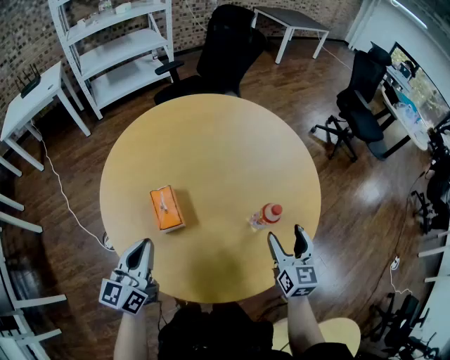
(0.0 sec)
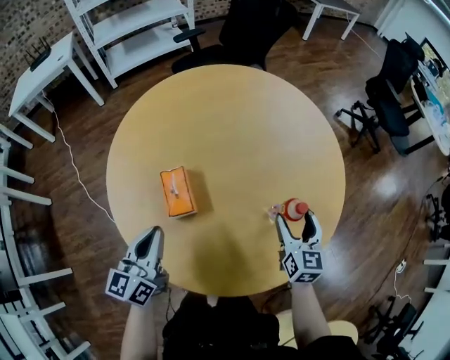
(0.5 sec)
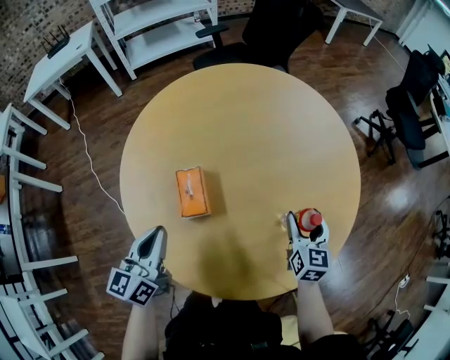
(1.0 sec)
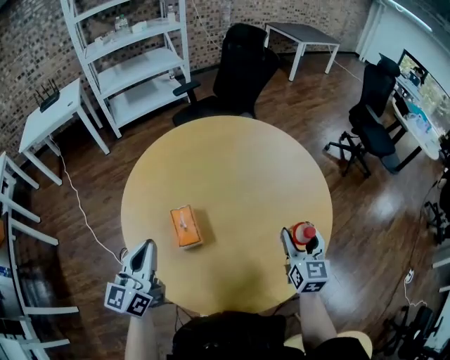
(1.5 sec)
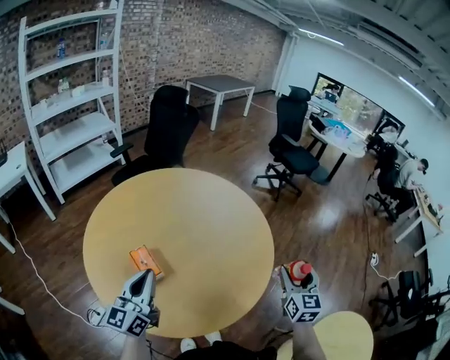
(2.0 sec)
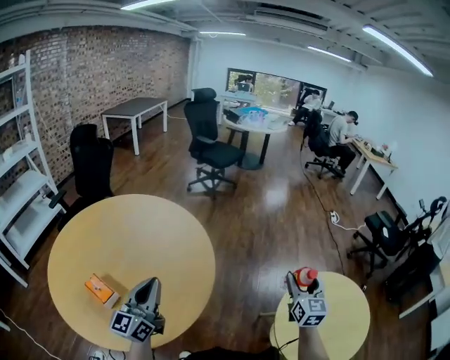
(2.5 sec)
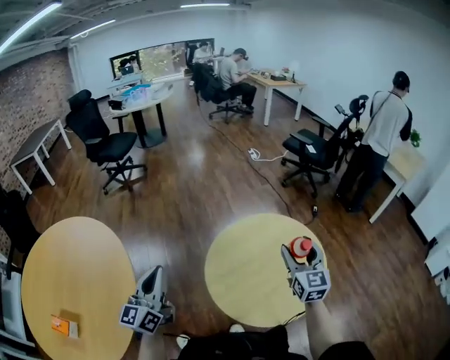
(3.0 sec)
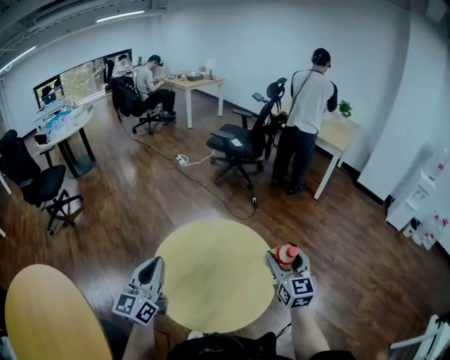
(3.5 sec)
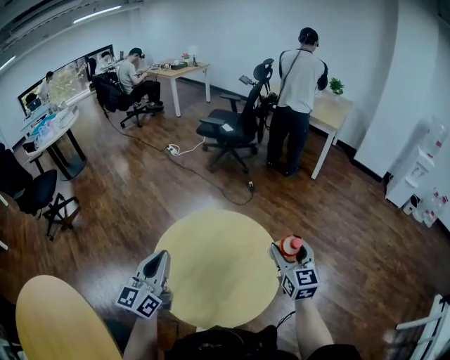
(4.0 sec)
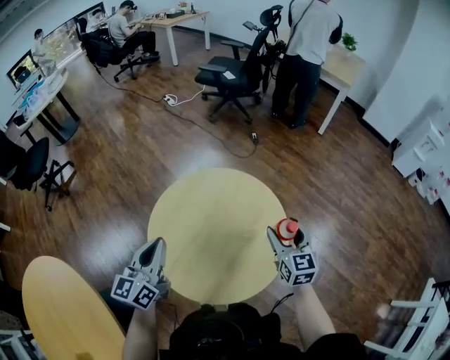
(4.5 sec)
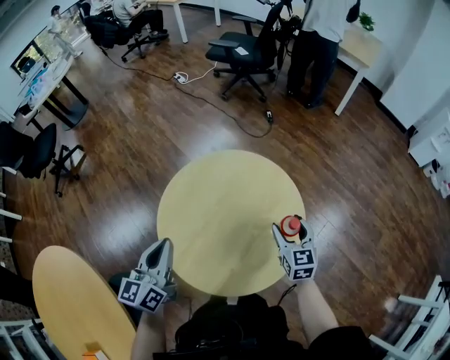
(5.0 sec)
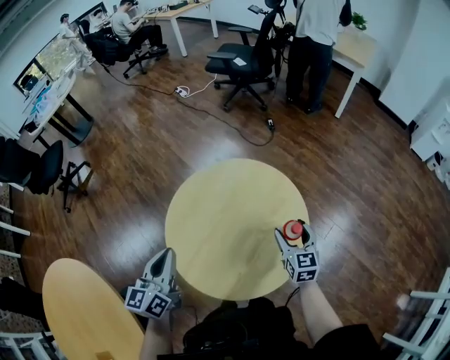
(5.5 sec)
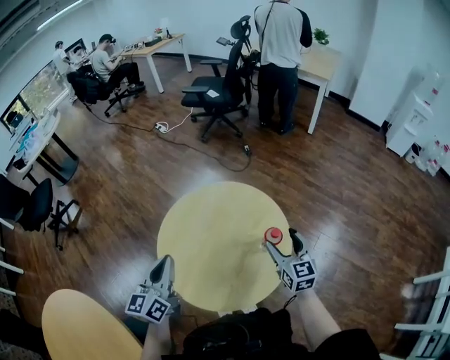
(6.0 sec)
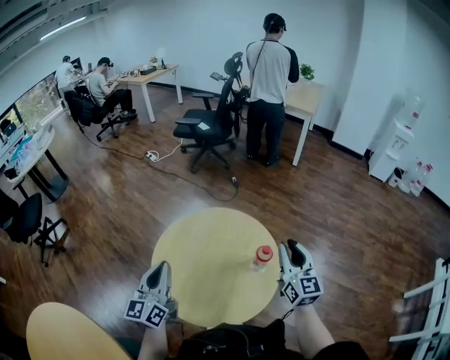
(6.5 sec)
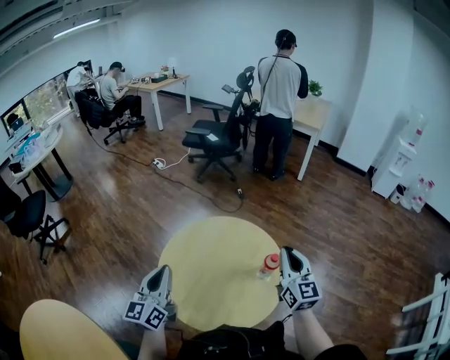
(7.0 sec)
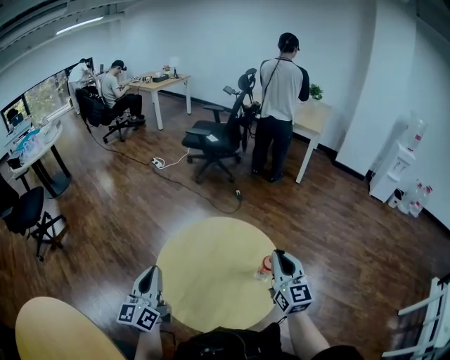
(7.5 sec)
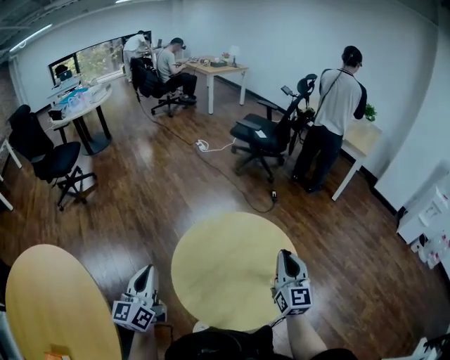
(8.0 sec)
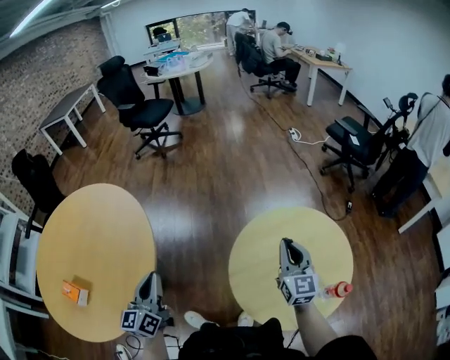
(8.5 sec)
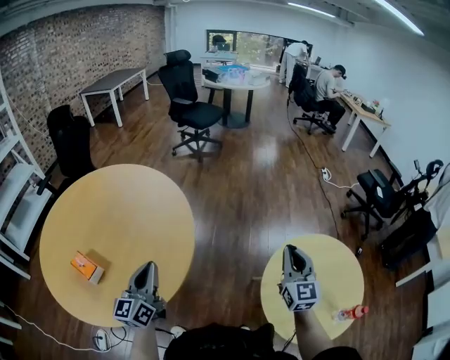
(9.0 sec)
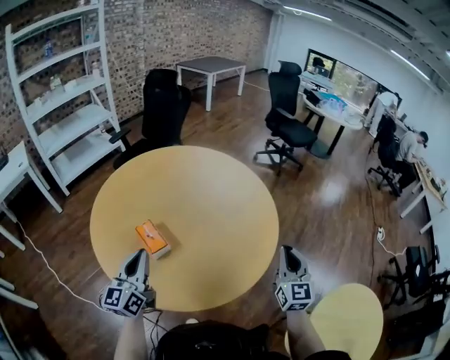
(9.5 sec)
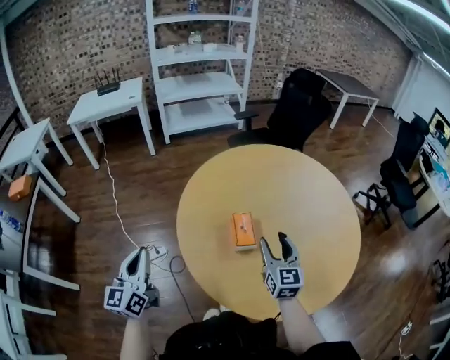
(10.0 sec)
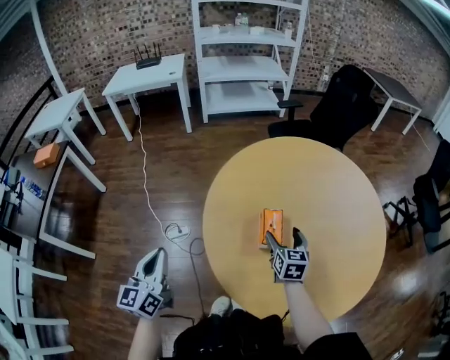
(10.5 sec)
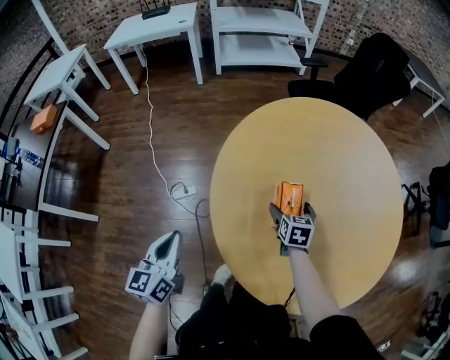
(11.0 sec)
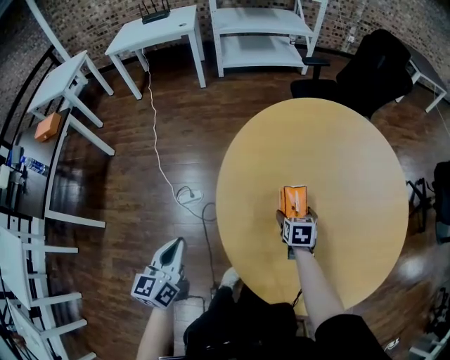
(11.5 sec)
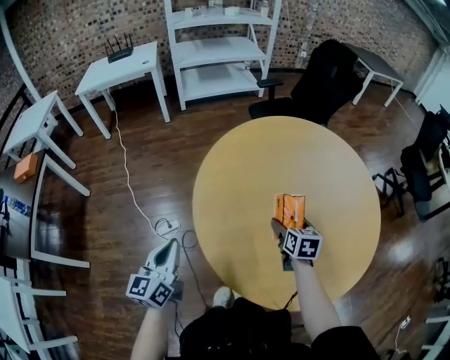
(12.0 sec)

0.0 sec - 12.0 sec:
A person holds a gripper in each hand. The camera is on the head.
0.0 sec - 2.0 sec: The right gripper moves about 15 cm, and swivels some 30 degrees, while the left gripper is displaced upward by some 5 cm, and swivels approximately 20 degrees.
2.0 sec - 4.0 sec: The left gripper moves about 80 cm, and turns by some 90 degrees. The right gripper changes place by about 80 cm, and swivels roughly 70 degrees.
4.0 sec - 6.0 sec: The right gripper travels downward by some 10 cm; the left gripper shifts some 5 cm downward.
6.0 sec - 8.0 sec: The right gripper travels upward and to the left by approximately 15 cm, and closes. Meanwhile the left gripper goes some 15 cm to the left and backward, and turns by approximately 20 degrees.
8.0 sec - 10.0 sec: The left gripper moves roughly 90 cm, and swivels roughly 110 degrees, while the right gripper ends up roughly 1 m from where it was, swivels roughly 110 degrees, and opens its fingers.
10.0 sec - 12.0 sec: The left gripper moves downward, about 5 cm. Meanwhile the right gripper heads downward and forward, covering about 15 cm, tilts its fingers some 30 degrees downward, and opens its fingers.

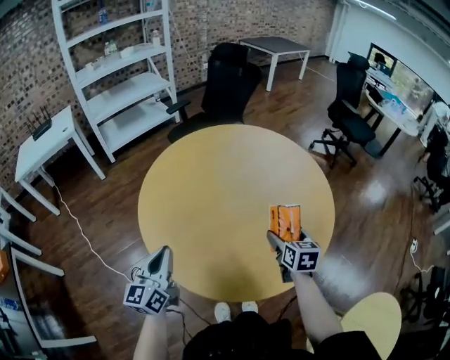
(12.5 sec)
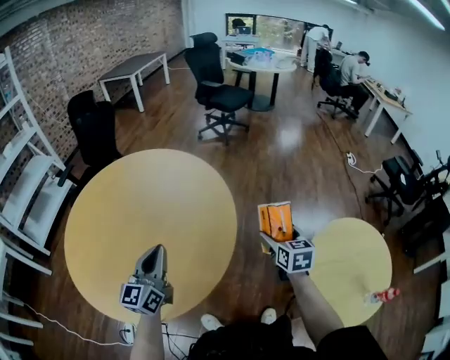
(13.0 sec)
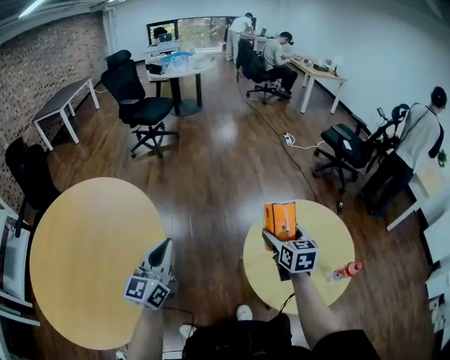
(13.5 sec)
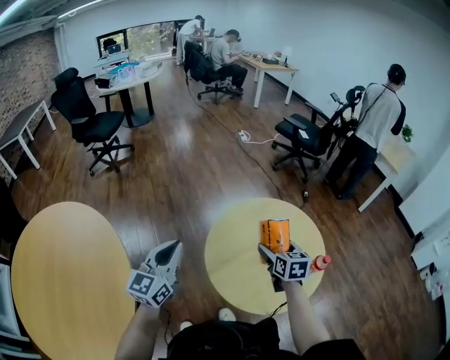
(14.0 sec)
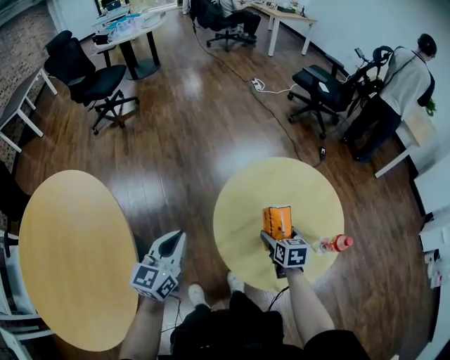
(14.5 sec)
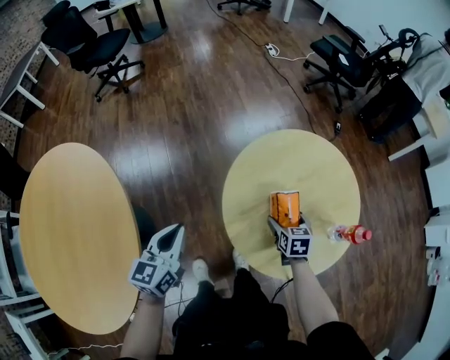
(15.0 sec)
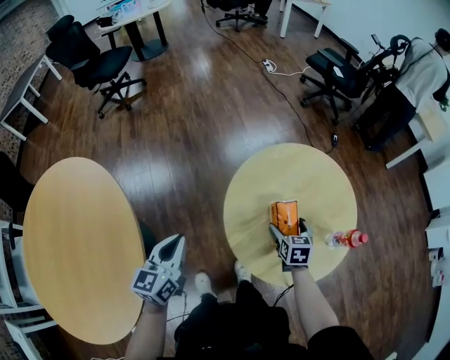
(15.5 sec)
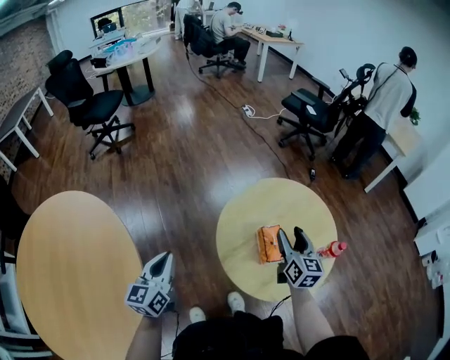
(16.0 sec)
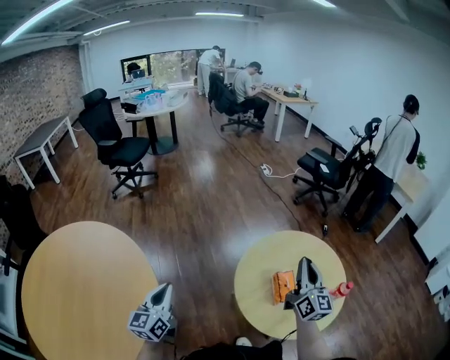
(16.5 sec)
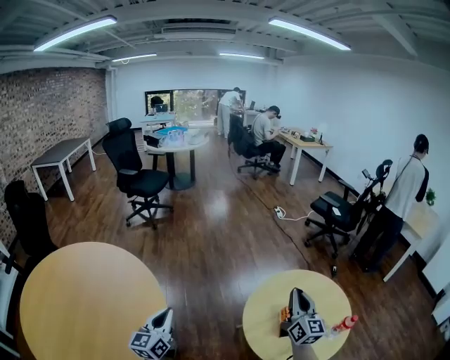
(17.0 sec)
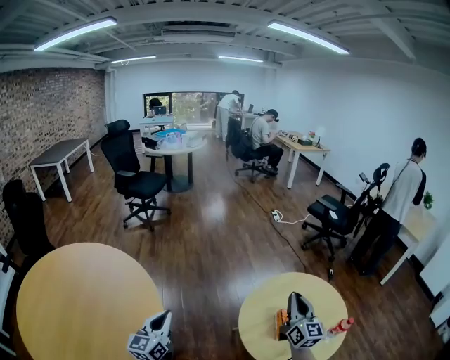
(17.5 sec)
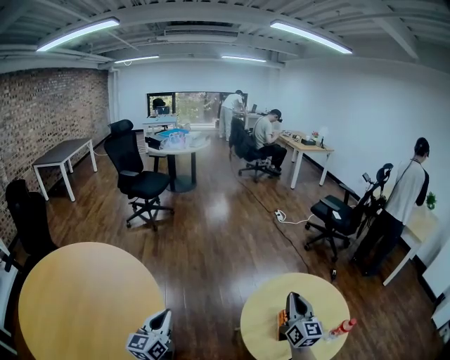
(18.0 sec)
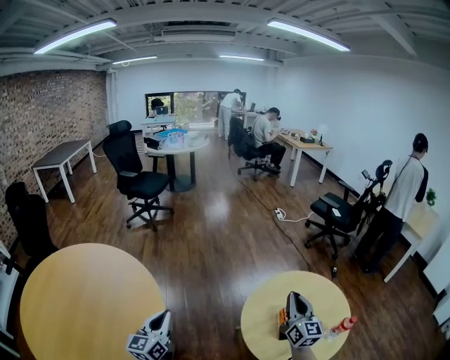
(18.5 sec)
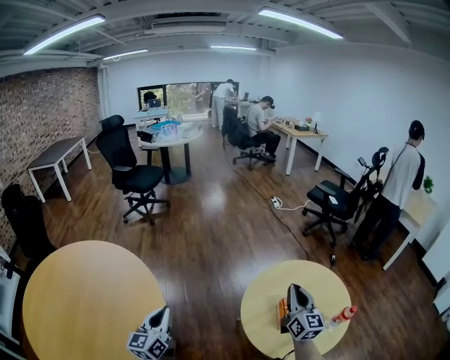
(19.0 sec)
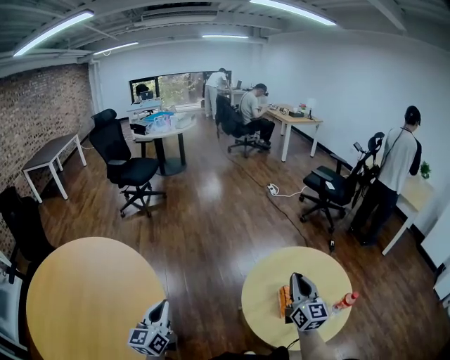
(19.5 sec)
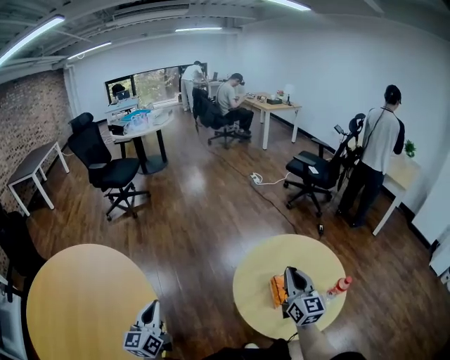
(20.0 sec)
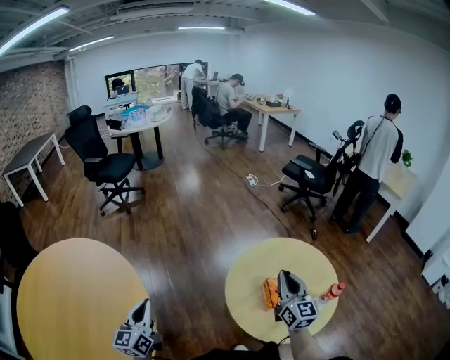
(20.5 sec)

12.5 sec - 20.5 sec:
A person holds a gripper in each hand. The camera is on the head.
12.5 sec - 14.5 sec: The pair of grippers is taken approximately 70 cm. The right gripper swivels roughly 70 degrees. Meanwhile the left gripper changes its angle by approximately 80 degrees.
14.5 sec - 16.5 sec: The right gripper travels upward by about 25 cm, tips its fingers upward by about 60 degrees, and closes its fingers. The left gripper goes roughly 15 cm to the left.
16.5 sec - 18.5 sec: The left gripper shifts by roughly 5 cm; the right gripper heads to the left, covering some 5 cm.
18.5 sec - 20.5 sec: The grippers stay close to where they were, moving slightly.

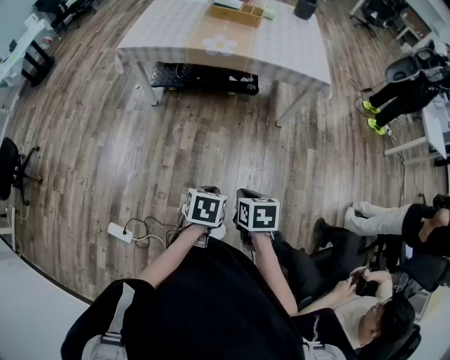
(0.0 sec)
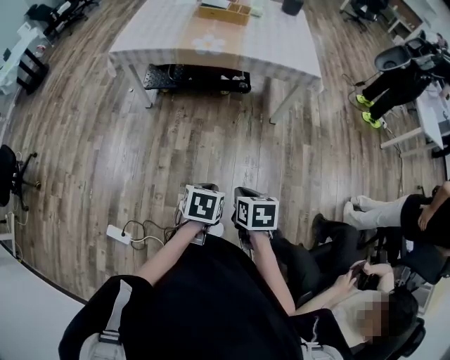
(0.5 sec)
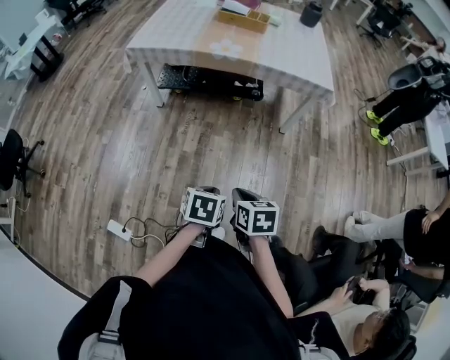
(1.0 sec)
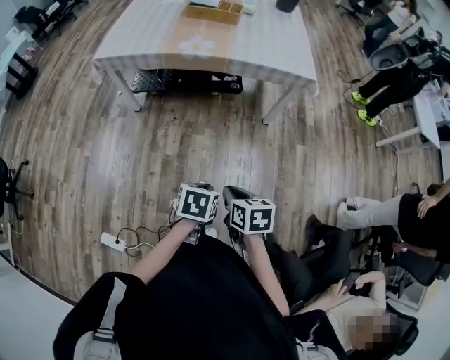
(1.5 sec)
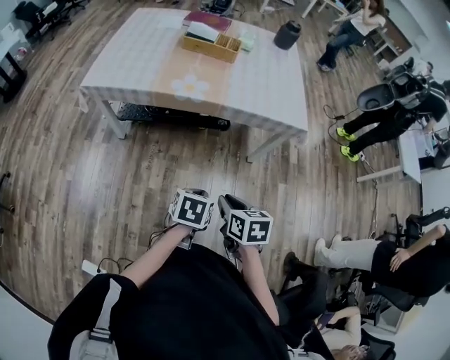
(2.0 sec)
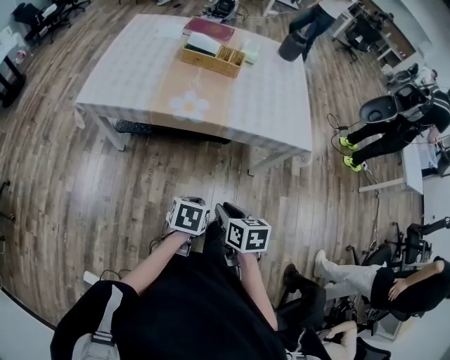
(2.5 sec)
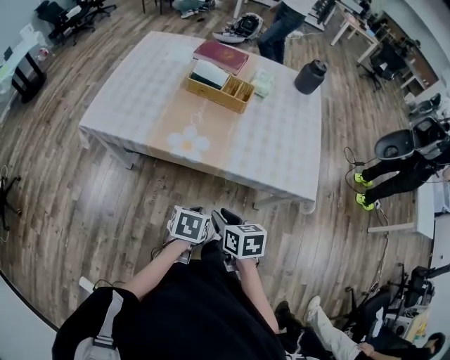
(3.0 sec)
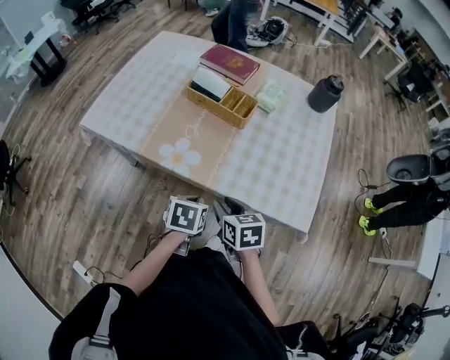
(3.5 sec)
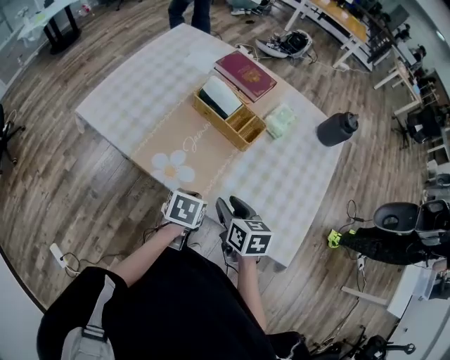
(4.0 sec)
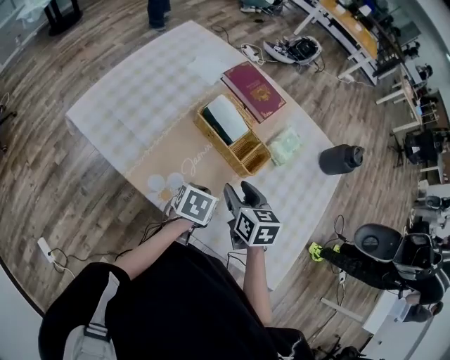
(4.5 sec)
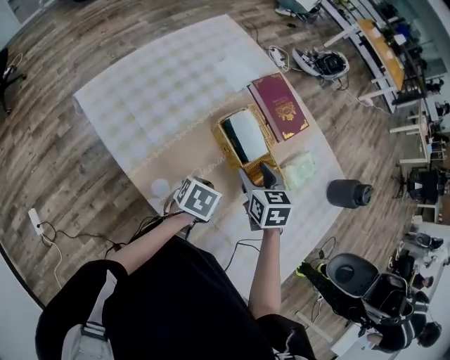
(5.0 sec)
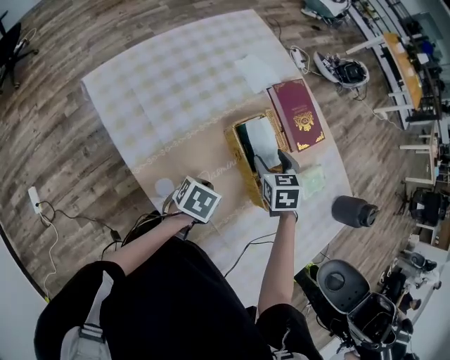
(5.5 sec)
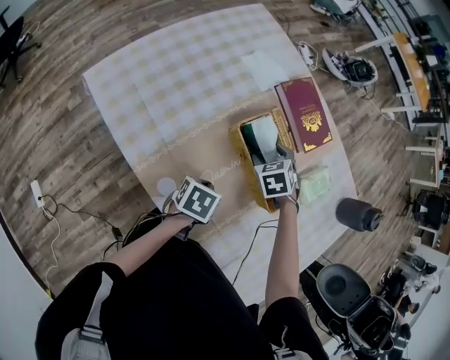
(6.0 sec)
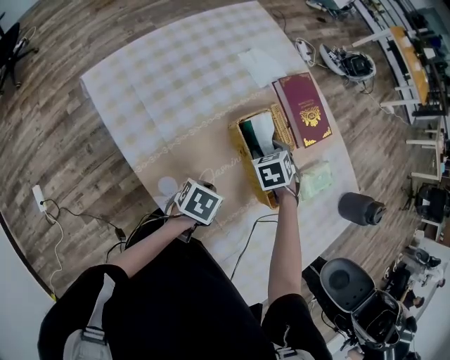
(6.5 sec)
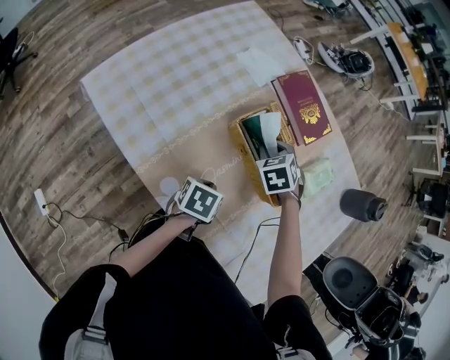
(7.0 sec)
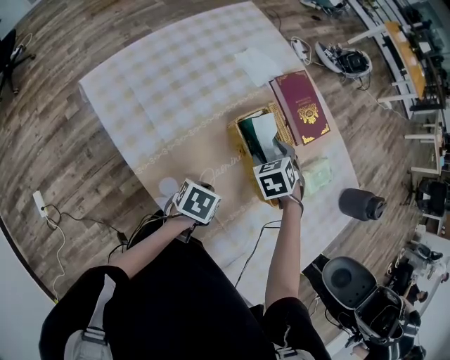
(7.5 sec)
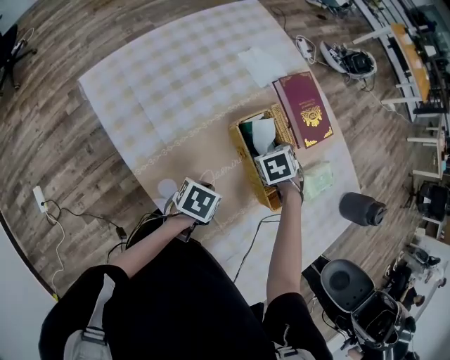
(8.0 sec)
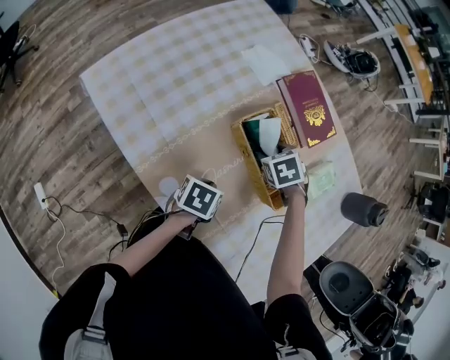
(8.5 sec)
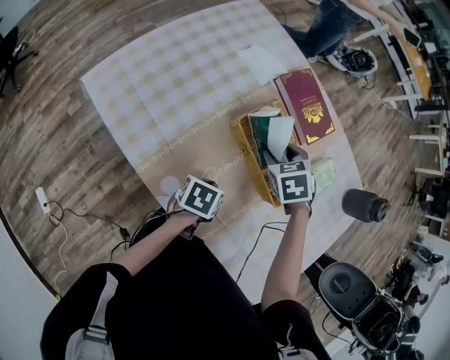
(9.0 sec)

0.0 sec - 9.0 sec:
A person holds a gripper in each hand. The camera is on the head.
0.0 sec - 2.0 sec: Both grippers move forward, some 25 cm.
2.0 sec - 4.5 sec: The two grippers travel together, forward, about 60 cm. The left gripper turns by about 20 degrees. Meanwhile the right gripper changes its angle by about 30 degrees, and opens.
4.5 sec - 7.0 sec: The right gripper moves forward, downward and to the left, roughly 25 cm, and twists roughly 40 degrees counterclockwise, seen from behind, while the left gripper heads to the left, downward and forward, covering some 10 cm.
7.0 sec - 9.0 sec: There are only small adjustments of the grippers.
